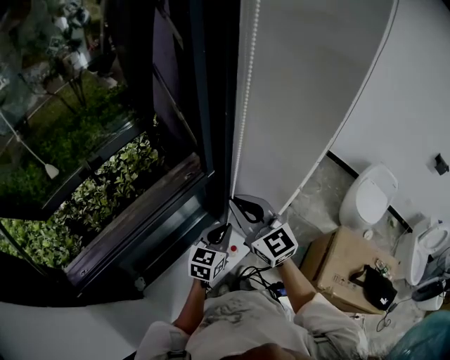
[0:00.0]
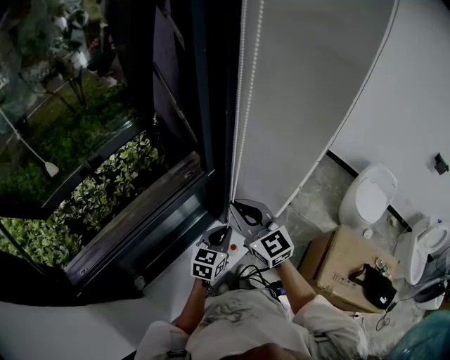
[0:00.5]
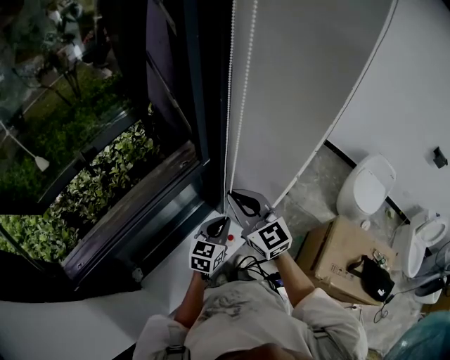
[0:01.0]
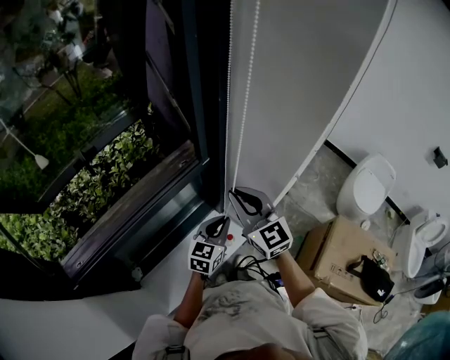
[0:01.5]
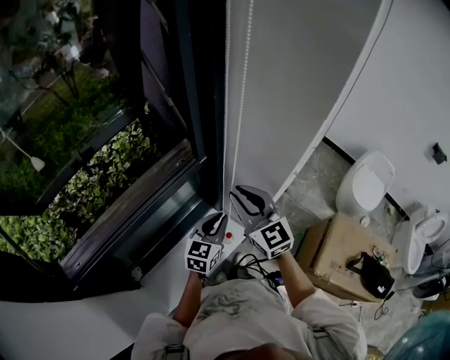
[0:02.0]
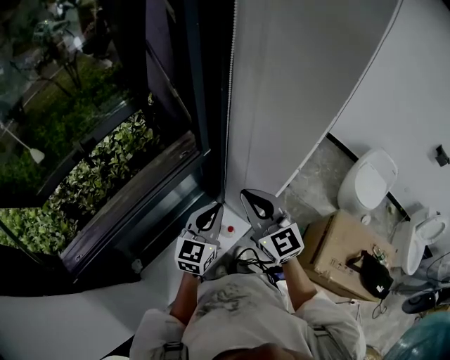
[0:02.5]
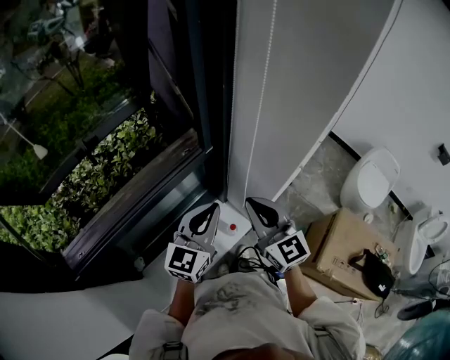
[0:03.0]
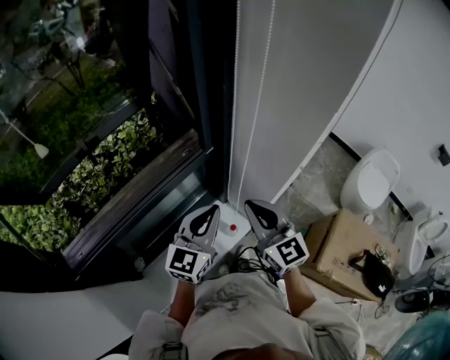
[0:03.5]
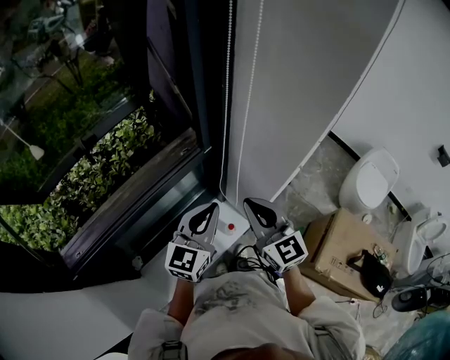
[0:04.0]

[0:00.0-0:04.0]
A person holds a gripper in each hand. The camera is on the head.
0:00.0 to 0:02.0: The right gripper moves some 5 cm.
0:02.0 to 0:04.0: The left gripper shifts roughly 10 cm upward. The right gripper ends up approximately 5 cm from where it was.

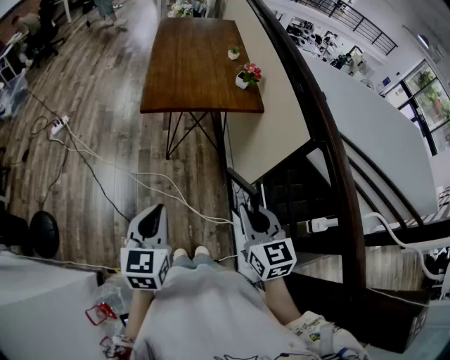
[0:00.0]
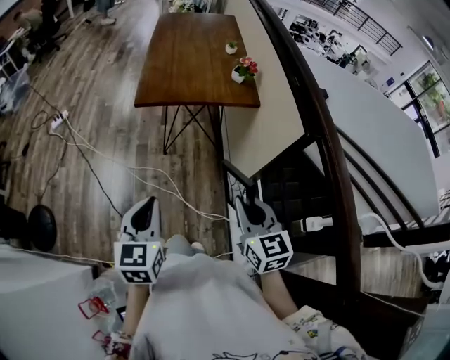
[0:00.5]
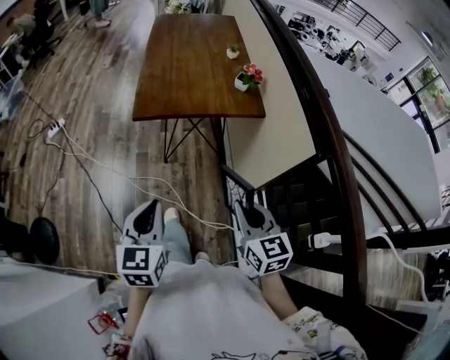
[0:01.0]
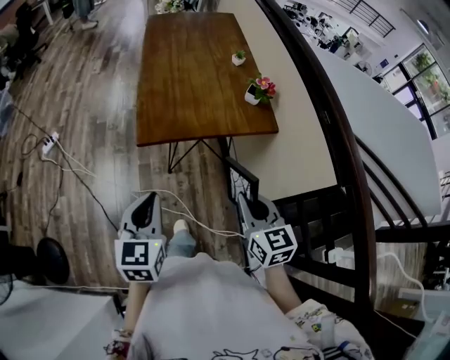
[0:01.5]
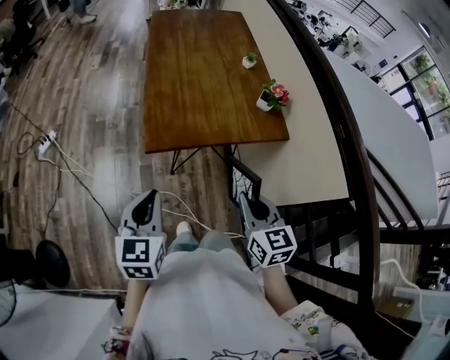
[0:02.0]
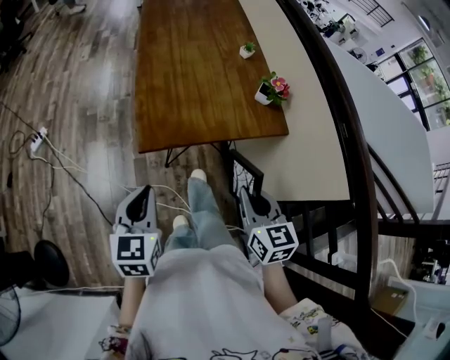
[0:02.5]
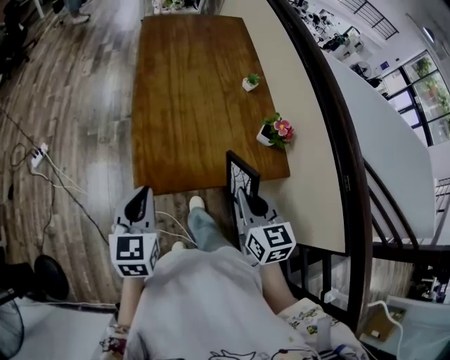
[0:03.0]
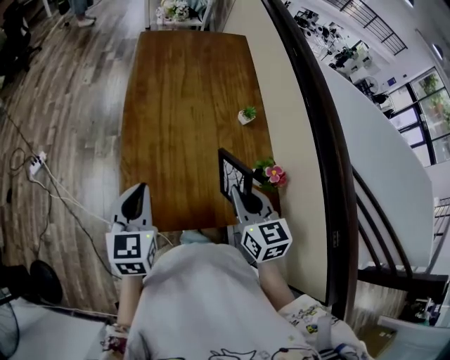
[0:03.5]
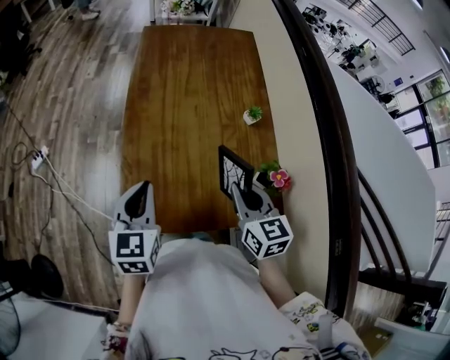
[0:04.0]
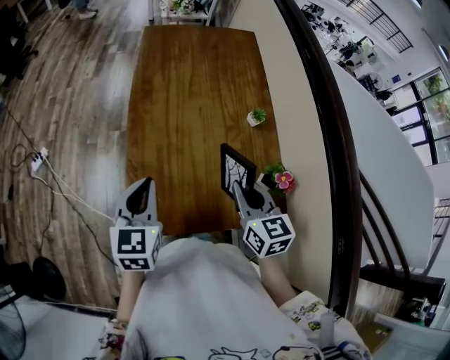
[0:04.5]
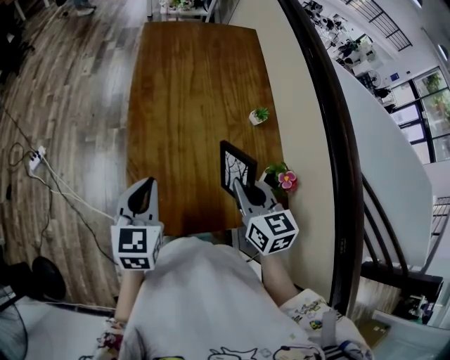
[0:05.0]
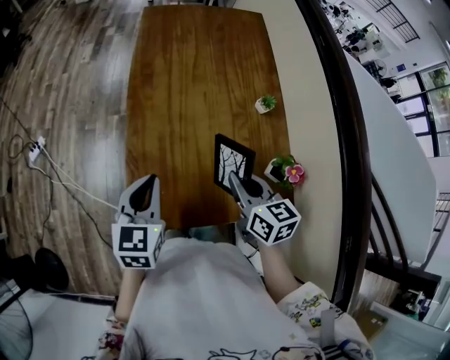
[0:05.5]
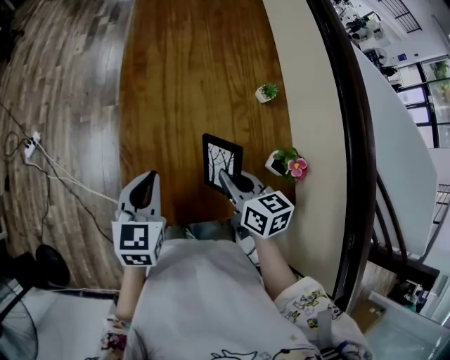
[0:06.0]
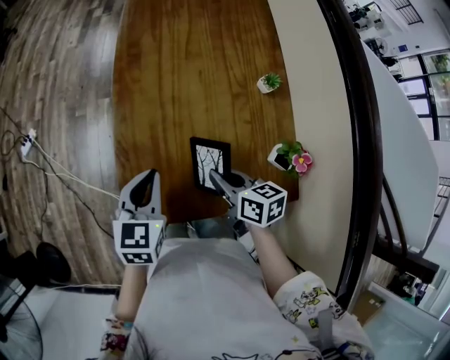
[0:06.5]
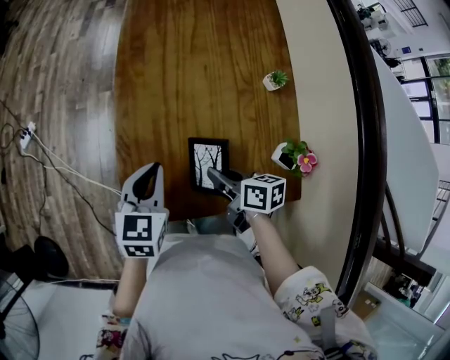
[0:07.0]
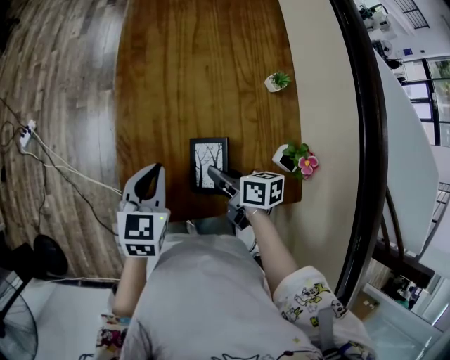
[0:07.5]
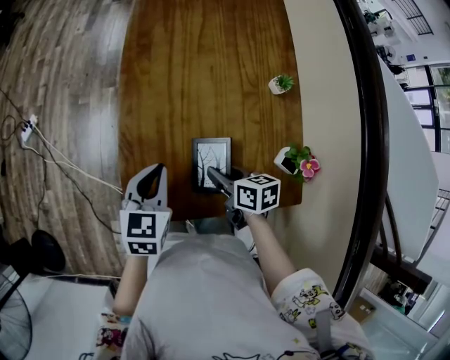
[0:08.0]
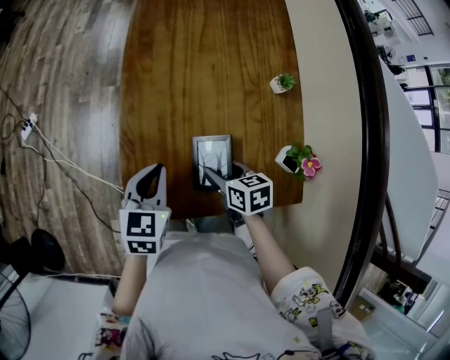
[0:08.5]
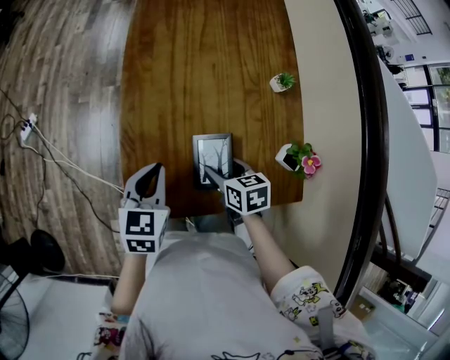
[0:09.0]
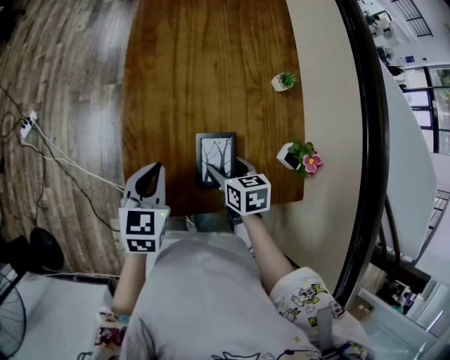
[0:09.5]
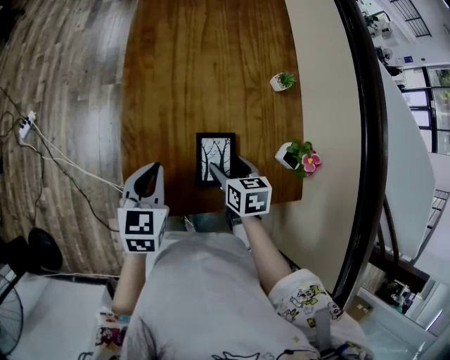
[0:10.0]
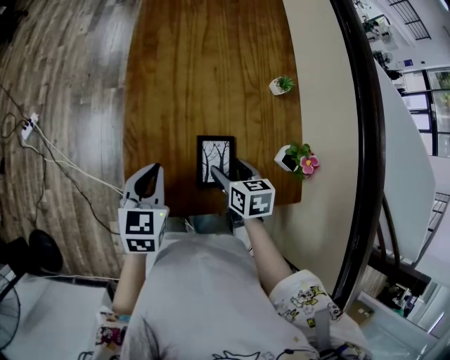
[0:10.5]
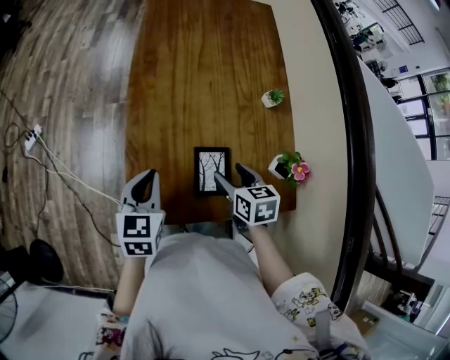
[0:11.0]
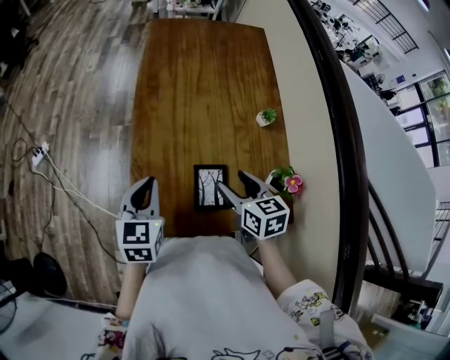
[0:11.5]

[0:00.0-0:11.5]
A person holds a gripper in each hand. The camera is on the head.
0:00.0 to 0:02.0: Both grippers travel together forward, about 30 cm.
0:02.0 to 0:04.0: Both grippers travel together forward, about 35 cm.
0:04.0 to 0:06.0: The left gripper goes about 5 cm downward, while the right gripper heads downward and to the left, covering some 10 cm, and changes its angle by some 20 degrees.
0:06.0 to 0:07.5: The left gripper travels downward by roughly 5 cm, while the right gripper shifts roughly 10 cm downward, and rotates about 30 degrees.
0:07.5 to 0:09.5: The right gripper changes its angle by approximately 30 degrees, and opens its fingers.
0:09.5 to 0:11.5: The left gripper heads upward, covering roughly 5 cm, while the right gripper heads upward, covering about 15 cm.

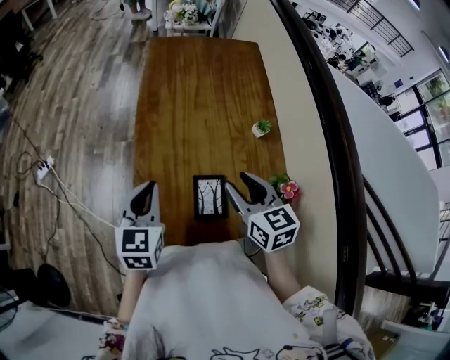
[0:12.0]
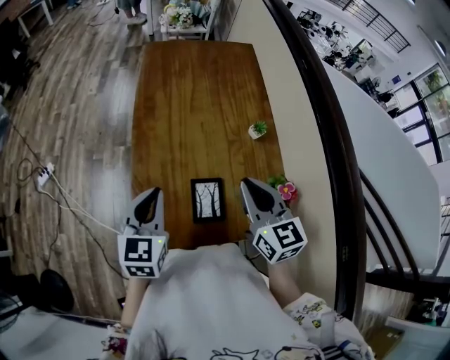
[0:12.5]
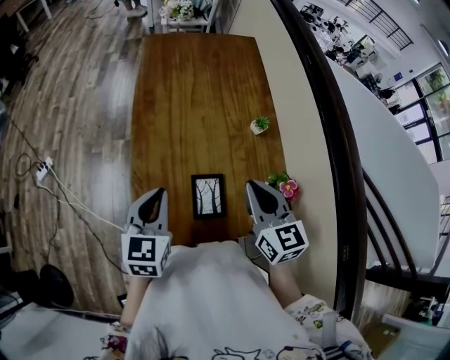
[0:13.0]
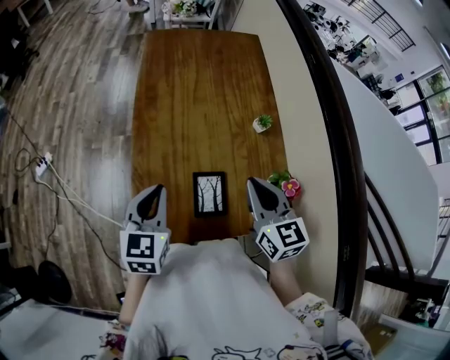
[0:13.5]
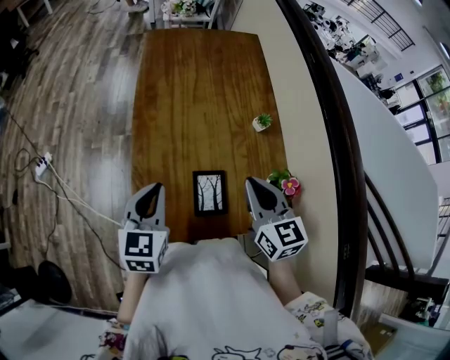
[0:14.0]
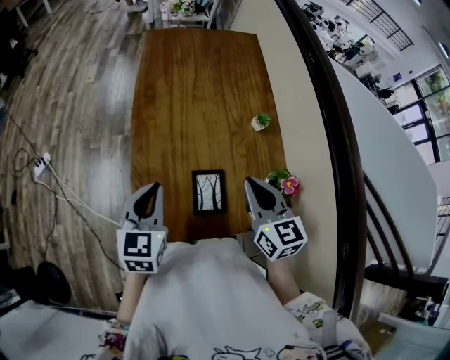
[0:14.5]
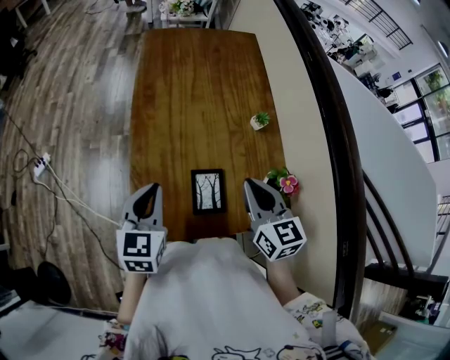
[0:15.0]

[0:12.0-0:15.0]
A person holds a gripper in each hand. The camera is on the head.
0:12.0 to 0:13.5: The right gripper closes its fingers.
0:13.5 to 0:15.0: The two grippers keep their place.

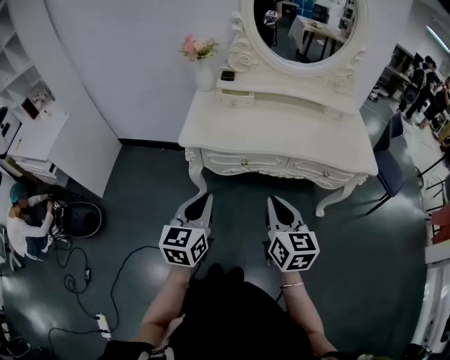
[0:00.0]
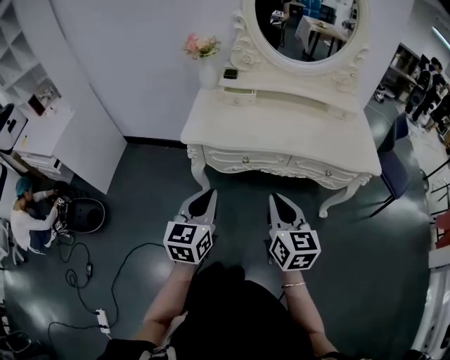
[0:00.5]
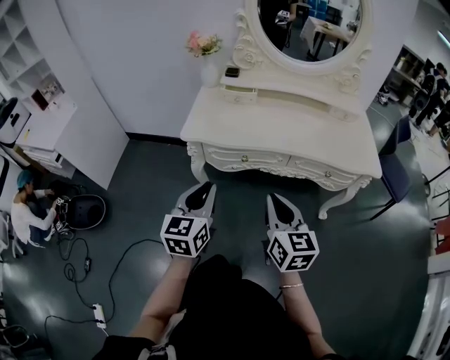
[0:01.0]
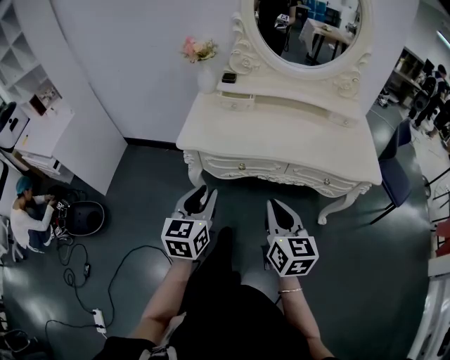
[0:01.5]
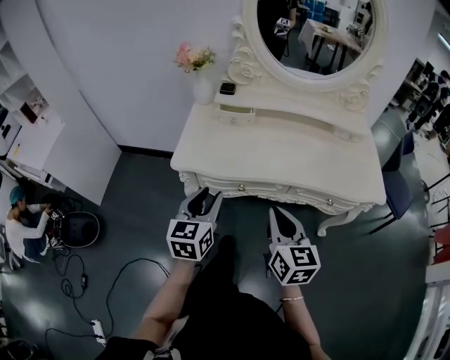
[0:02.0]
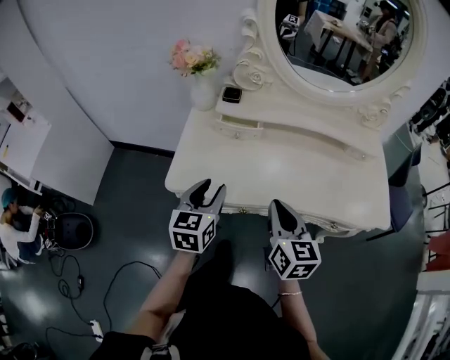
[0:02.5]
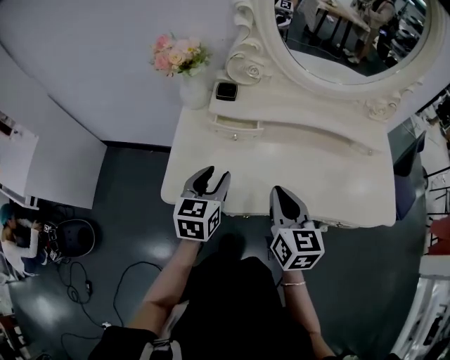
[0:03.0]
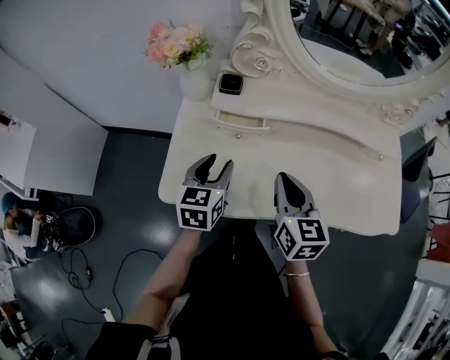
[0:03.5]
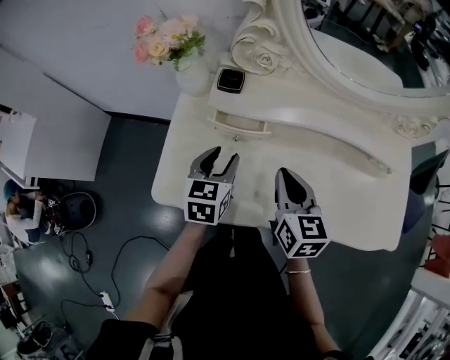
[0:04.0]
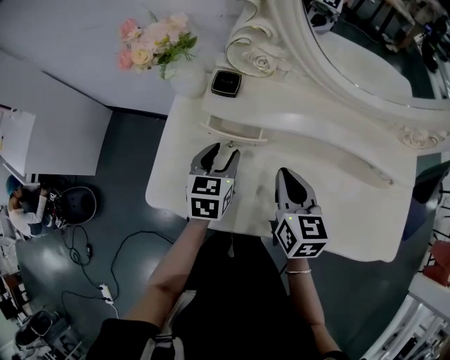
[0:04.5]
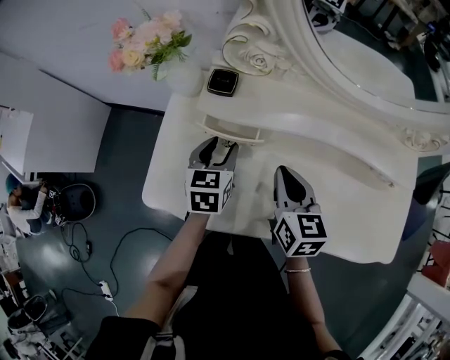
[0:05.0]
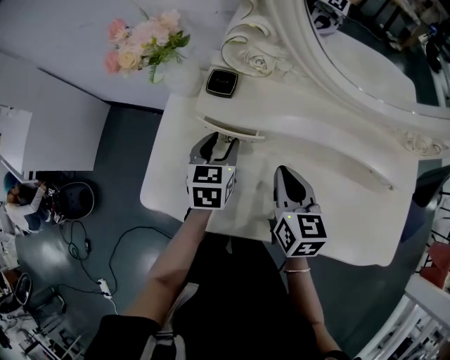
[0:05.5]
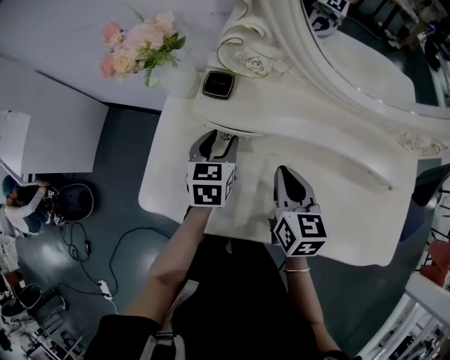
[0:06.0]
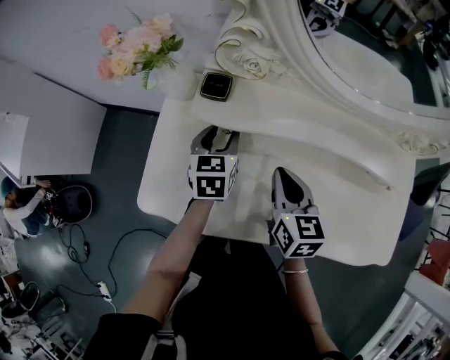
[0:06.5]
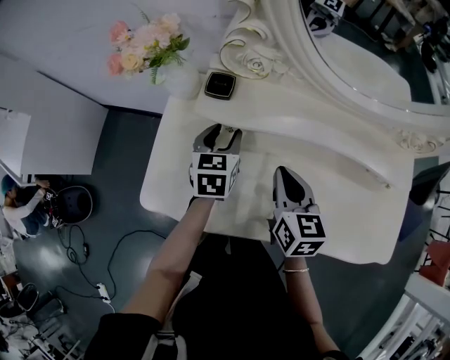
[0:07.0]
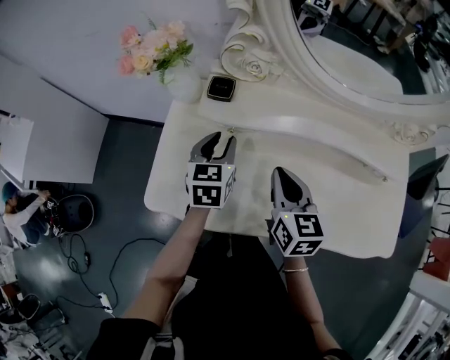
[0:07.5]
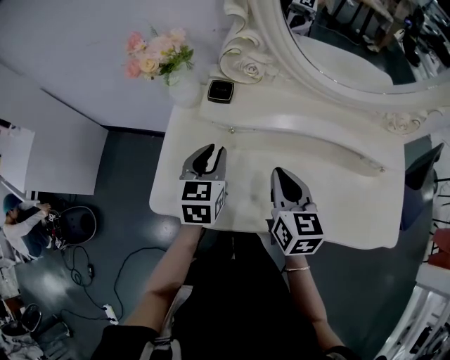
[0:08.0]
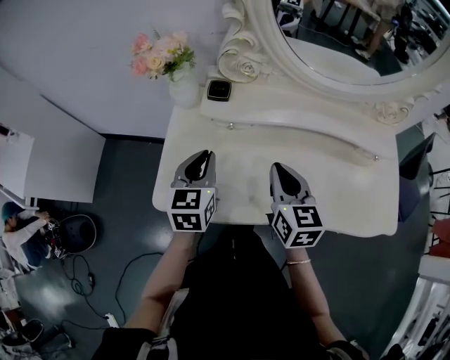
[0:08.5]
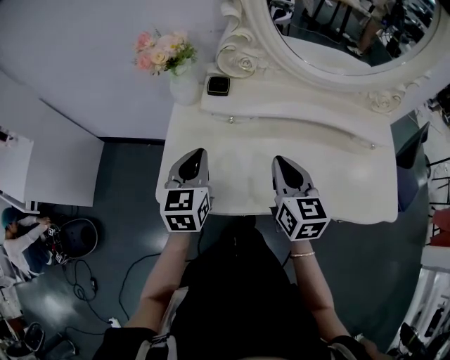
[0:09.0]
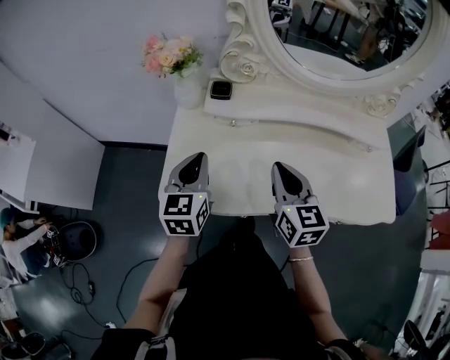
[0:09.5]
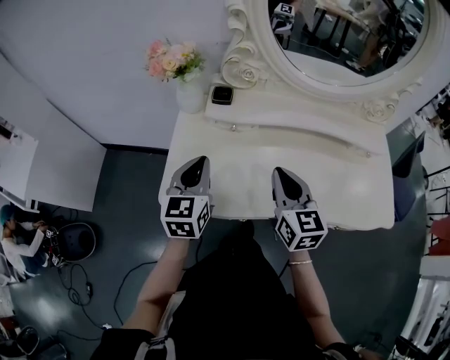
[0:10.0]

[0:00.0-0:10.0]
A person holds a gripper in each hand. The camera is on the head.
0:00.0 to 0:02.0: The two grippers go about 10 cm forward. The left gripper opens up.
0:02.0 to 0:04.0: The two grippers go approximately 30 cm forward.
0:04.0 to 0:06.0: The left gripper shifts some 10 cm forward, while the right gripper shifts about 5 cm forward.
0:06.0 to 0:08.0: The left gripper travels upward and backward by about 10 cm, and closes up. The right gripper ends up some 5 cm from where it was.
0:08.0 to 0:10.0: The right gripper heads backward, covering some 5 cm. Meanwhile the left gripper is displaced backward and upward by roughly 10 cm, and closes.
